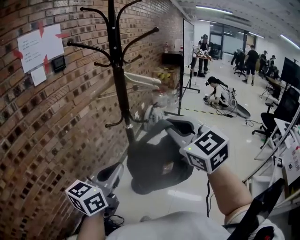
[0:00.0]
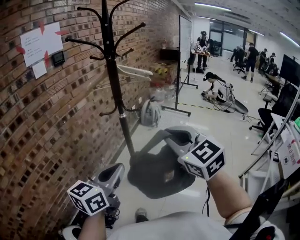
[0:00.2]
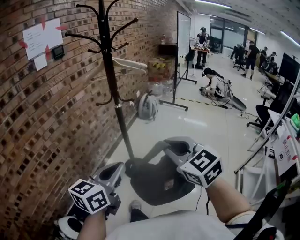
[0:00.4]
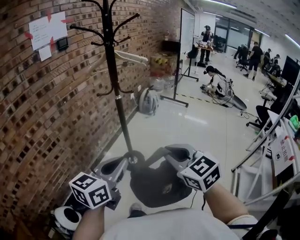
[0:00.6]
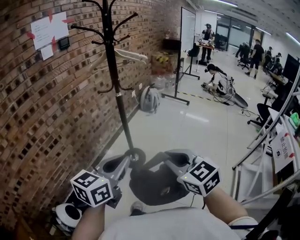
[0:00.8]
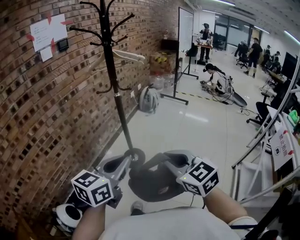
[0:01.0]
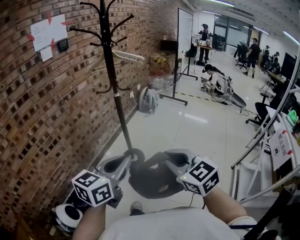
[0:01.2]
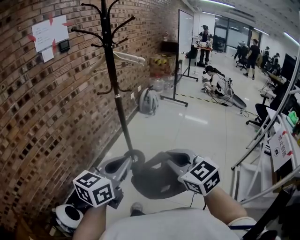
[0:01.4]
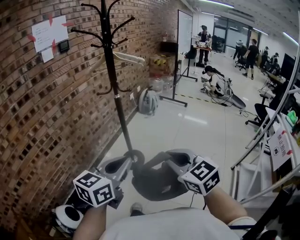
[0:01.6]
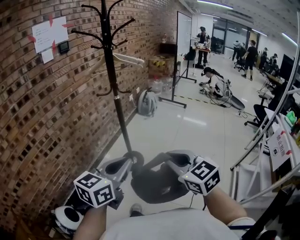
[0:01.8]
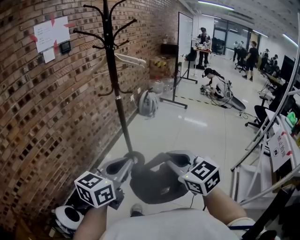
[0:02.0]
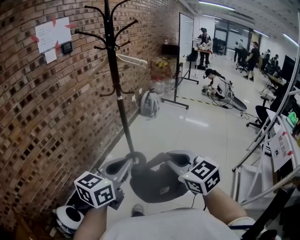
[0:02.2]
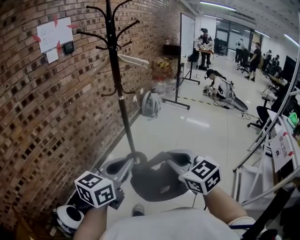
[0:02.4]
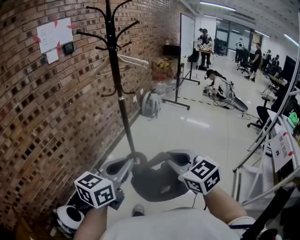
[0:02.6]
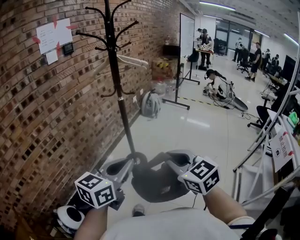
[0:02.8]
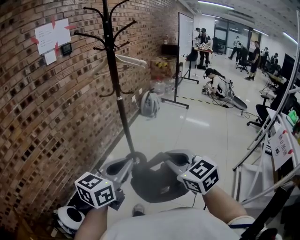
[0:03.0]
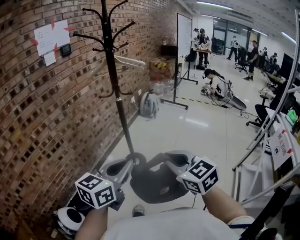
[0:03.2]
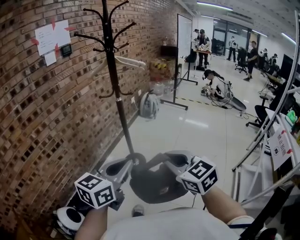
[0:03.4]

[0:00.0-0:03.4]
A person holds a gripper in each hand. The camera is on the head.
0:00.0 to 0:01.6: The left gripper goes roughly 25 cm backward and to the right. Meanwhile the right gripper is displaced backward and downward by roughly 30 cm.
0:01.6 to 0:03.4: There are only small adjustments of the grippers.

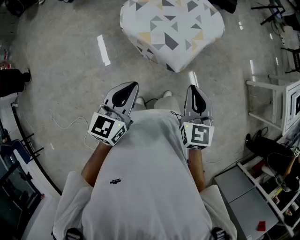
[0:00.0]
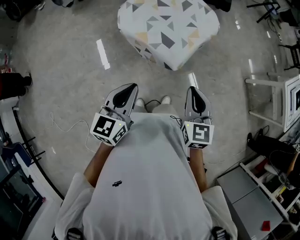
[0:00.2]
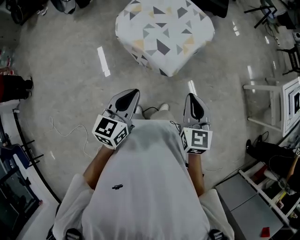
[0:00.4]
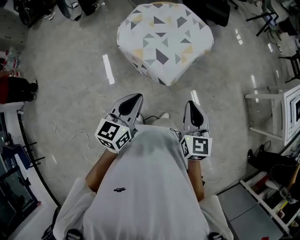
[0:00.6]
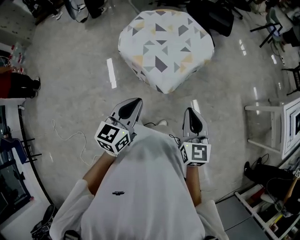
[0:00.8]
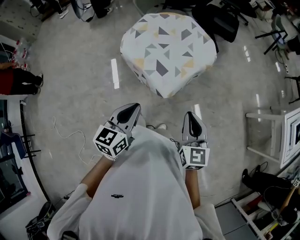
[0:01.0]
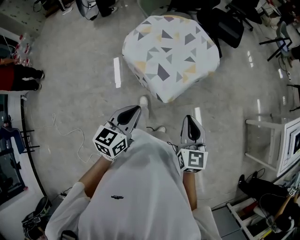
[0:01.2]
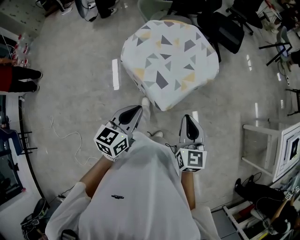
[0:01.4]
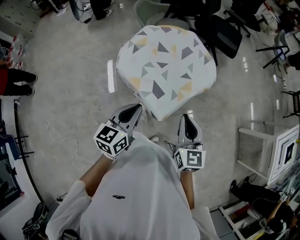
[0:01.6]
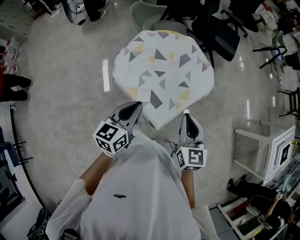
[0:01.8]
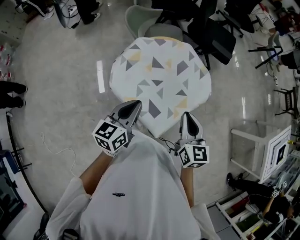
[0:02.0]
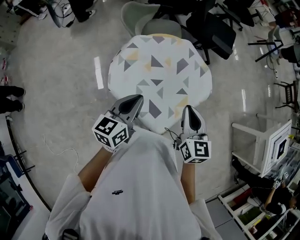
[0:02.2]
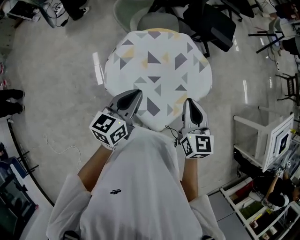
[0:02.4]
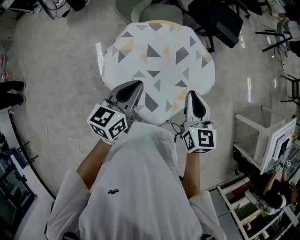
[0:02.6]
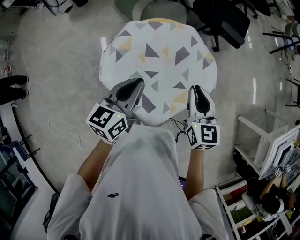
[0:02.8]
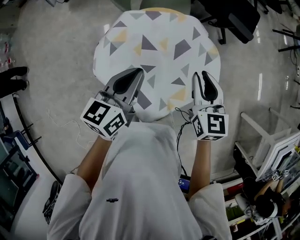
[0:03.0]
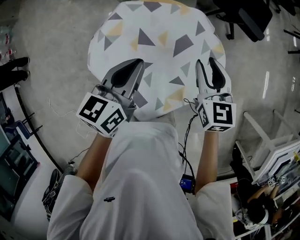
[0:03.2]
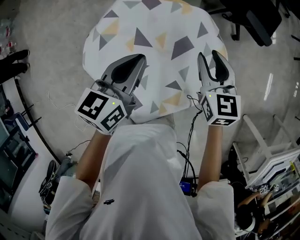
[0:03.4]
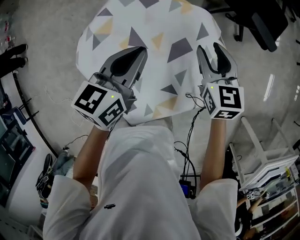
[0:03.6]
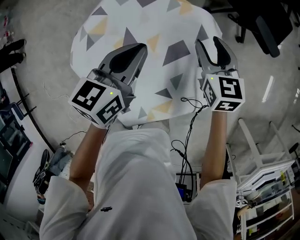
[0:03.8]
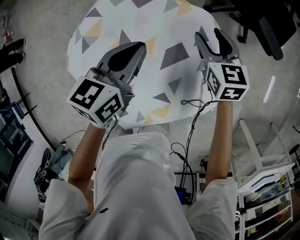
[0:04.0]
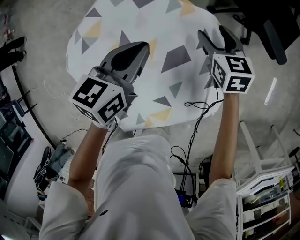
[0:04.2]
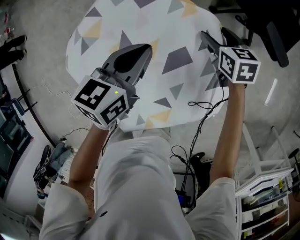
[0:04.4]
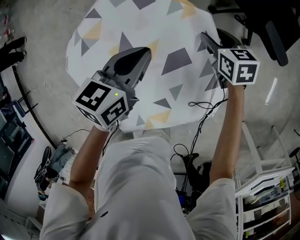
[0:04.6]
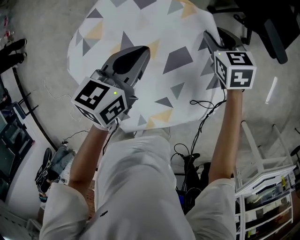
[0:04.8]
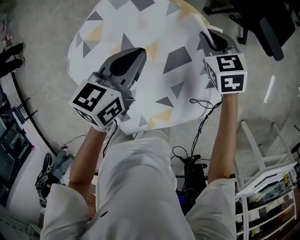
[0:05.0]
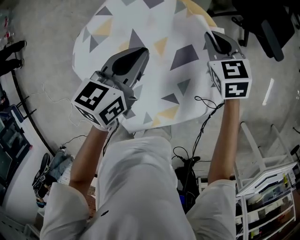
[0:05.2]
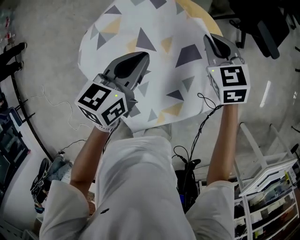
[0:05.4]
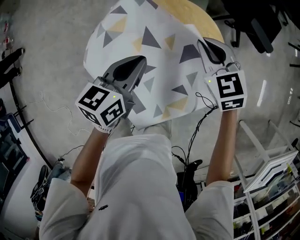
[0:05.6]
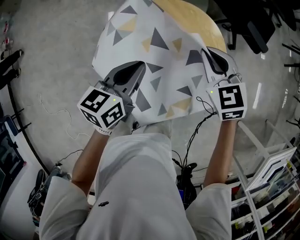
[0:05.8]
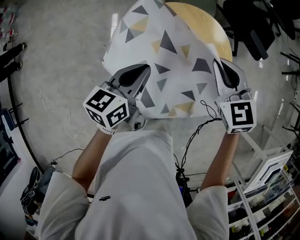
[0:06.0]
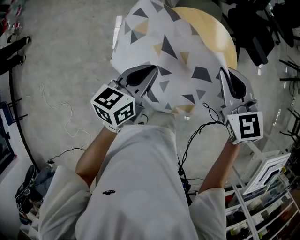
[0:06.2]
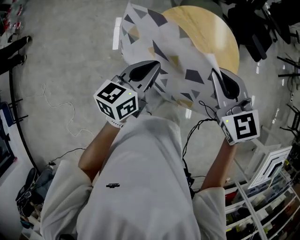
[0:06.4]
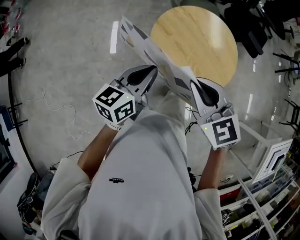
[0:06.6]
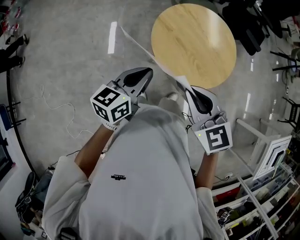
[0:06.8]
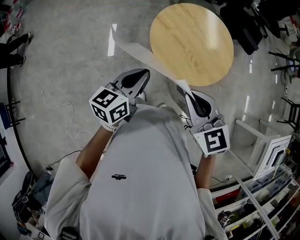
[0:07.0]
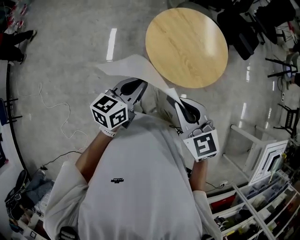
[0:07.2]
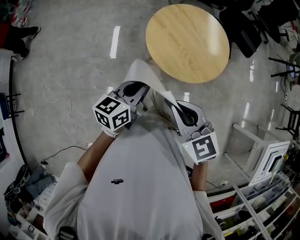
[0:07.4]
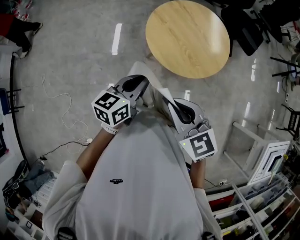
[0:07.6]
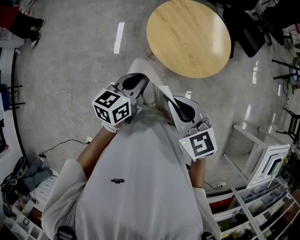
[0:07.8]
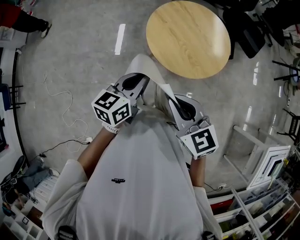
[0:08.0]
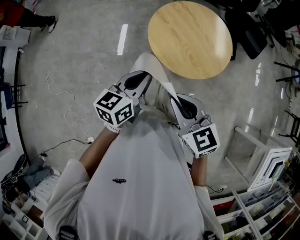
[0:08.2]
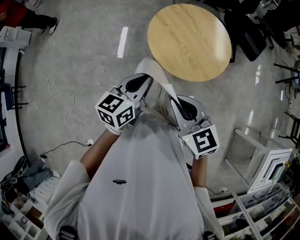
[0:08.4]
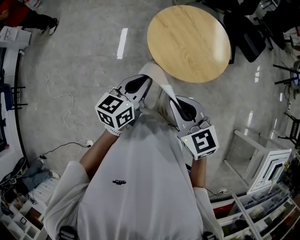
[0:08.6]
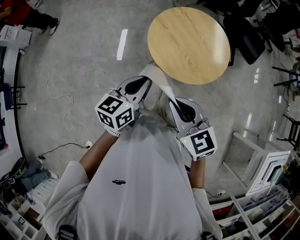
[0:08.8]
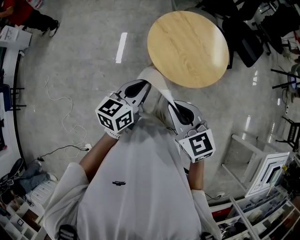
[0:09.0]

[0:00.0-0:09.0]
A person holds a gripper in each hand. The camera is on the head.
0:00.0 to 0:01.6: Both grippers move forward and to the right, about 15 cm.
0:01.6 to 0:03.0: Both grippers move forward, approximately 35 cm.
0:03.0 to 0:04.4: The left gripper moves downward, forward and to the right, some 25 cm. Meanwhile the right gripper shifts some 40 cm downward and forward, rotates some 40 degrees, and opens its fingers.
0:04.4 to 0:06.0: The left gripper is displaced backward, to the left and upward by some 30 cm. Meanwhile the right gripper travels upward, backward and to the left by roughly 40 cm, swivels approximately 40 degrees, and closes up.
0:06.0 to 0:07.6: The left gripper travels backward by roughly 30 cm, while the right gripper moves backward and to the left, roughly 50 cm.
0:07.6 to 0:09.0: The grippers move only a little.

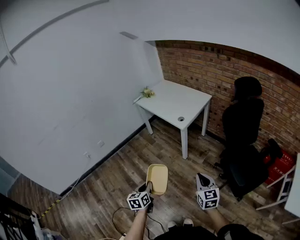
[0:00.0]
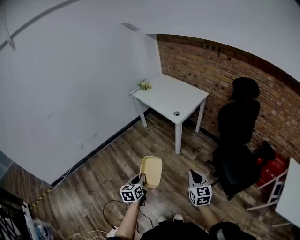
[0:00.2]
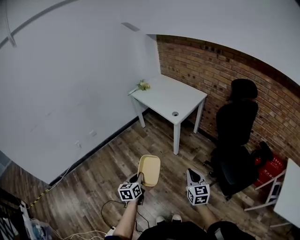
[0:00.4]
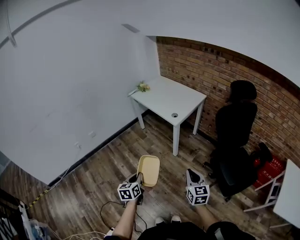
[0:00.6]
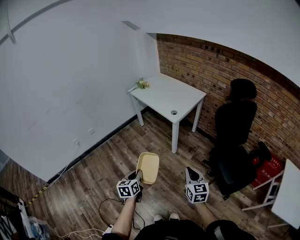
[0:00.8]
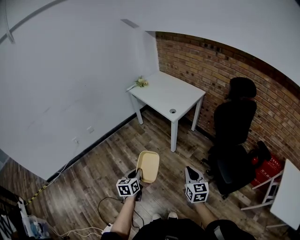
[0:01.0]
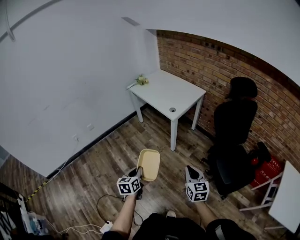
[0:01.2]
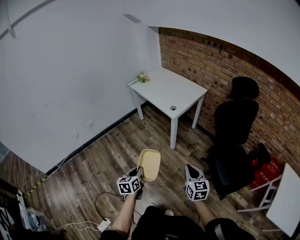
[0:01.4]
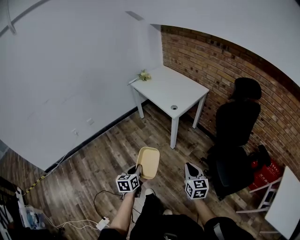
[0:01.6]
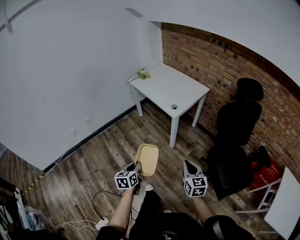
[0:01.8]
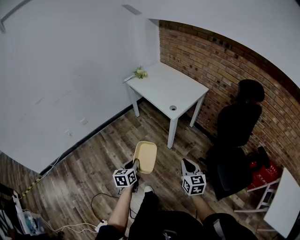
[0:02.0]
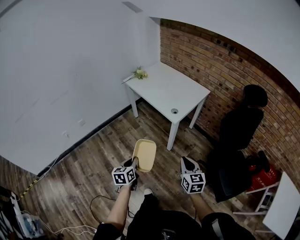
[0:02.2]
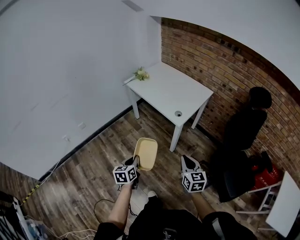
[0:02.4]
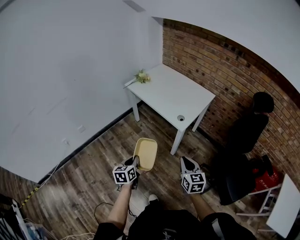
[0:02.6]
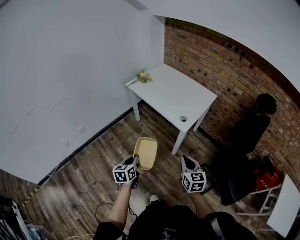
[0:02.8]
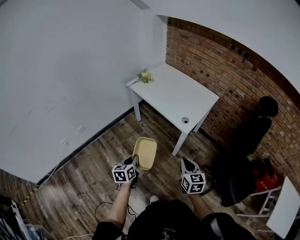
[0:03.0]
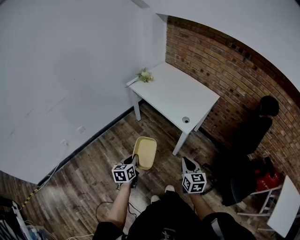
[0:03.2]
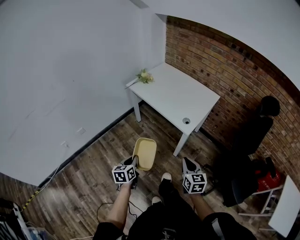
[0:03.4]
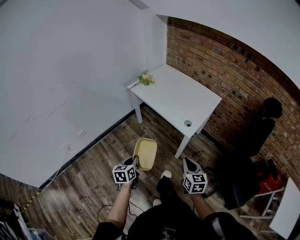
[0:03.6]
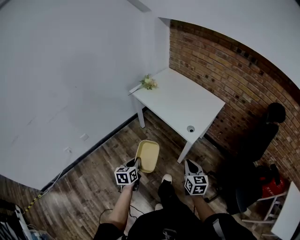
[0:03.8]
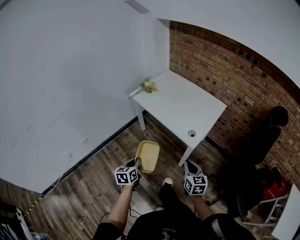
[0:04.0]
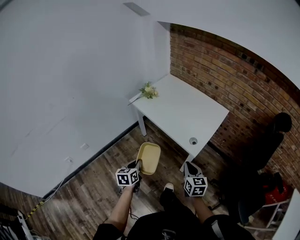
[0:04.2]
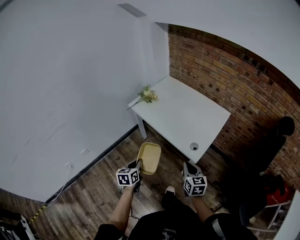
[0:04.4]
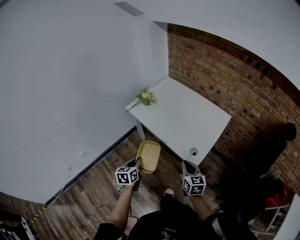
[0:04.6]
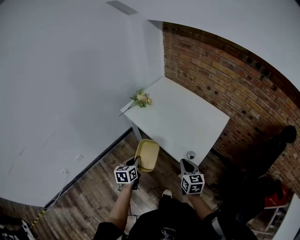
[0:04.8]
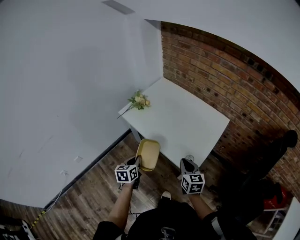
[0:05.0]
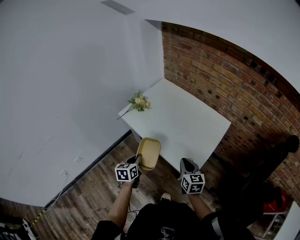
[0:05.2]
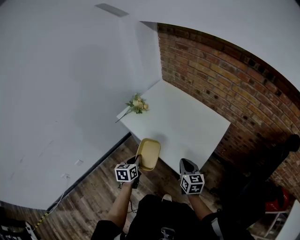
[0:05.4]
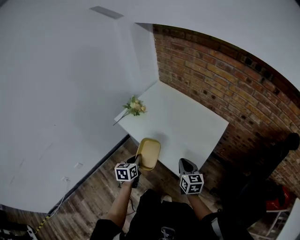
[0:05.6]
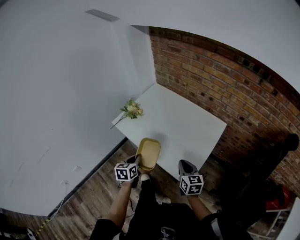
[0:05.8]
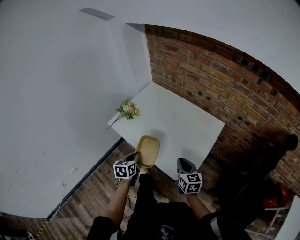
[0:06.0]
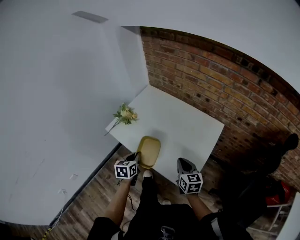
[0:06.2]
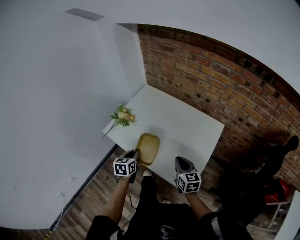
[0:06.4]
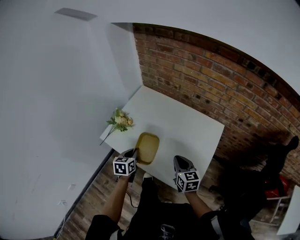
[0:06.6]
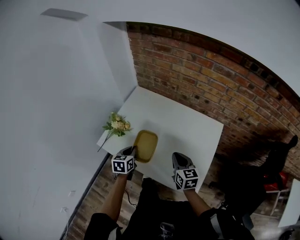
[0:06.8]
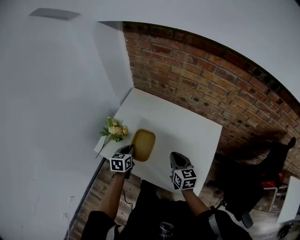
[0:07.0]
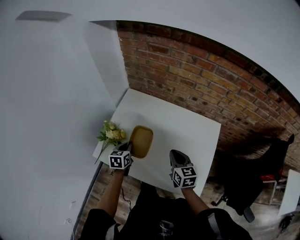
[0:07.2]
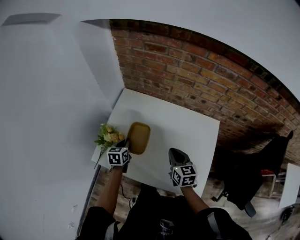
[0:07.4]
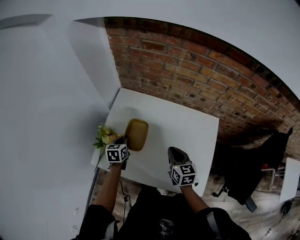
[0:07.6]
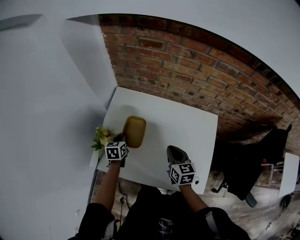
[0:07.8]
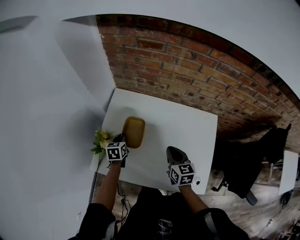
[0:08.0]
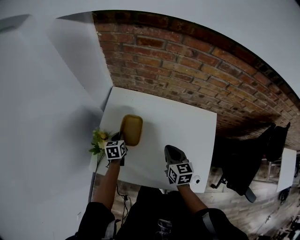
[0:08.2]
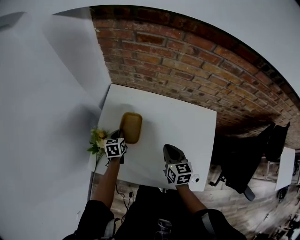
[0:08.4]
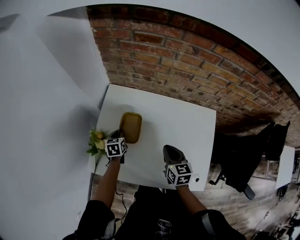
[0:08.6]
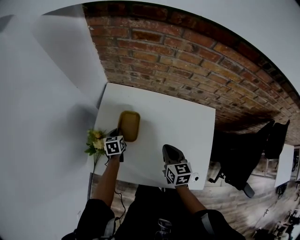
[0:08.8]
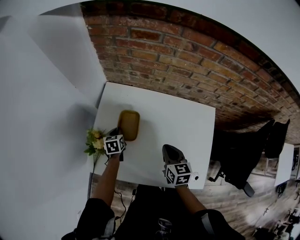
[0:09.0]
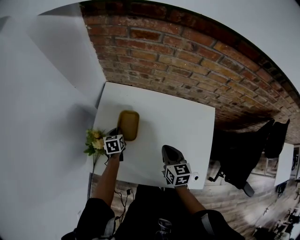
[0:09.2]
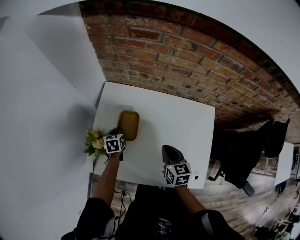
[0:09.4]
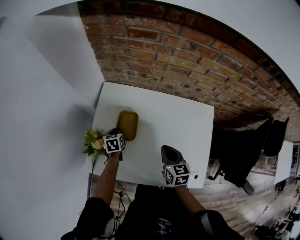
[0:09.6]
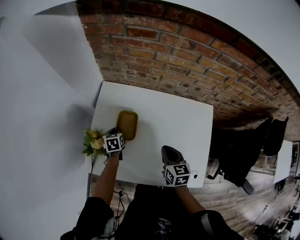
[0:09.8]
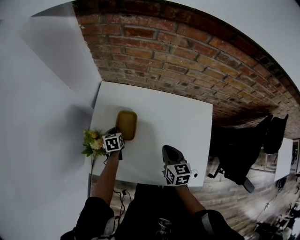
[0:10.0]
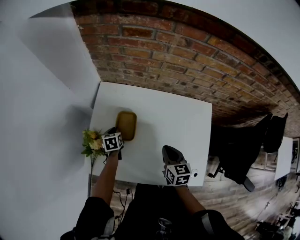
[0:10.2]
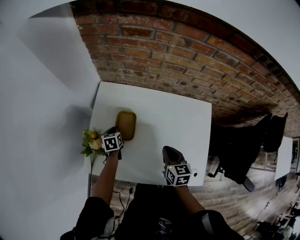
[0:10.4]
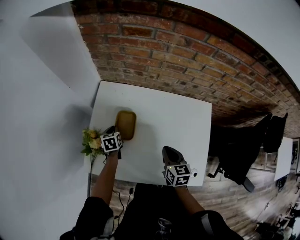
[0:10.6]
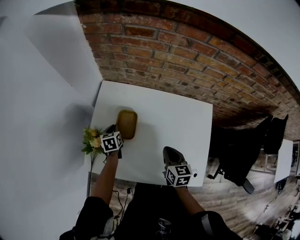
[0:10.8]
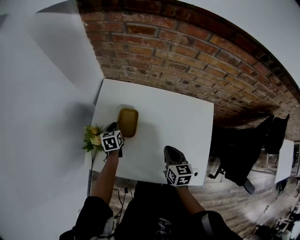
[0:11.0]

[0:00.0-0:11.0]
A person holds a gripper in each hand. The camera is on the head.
0:00.0 to 0:01.6: The grippers move only a little.
0:01.6 to 0:03.2: Both grippers travel together forward and to the left, some 30 cm.
0:03.2 to 0:04.8: Both grippers move forward, some 30 cm.
0:04.8 to 0:06.2: The right gripper goes some 15 cm forward, while the left gripper shifts roughly 20 cm forward and to the right.
0:06.2 to 0:07.8: The left gripper heads forward, covering roughly 35 cm. Meanwhile the right gripper heads forward and to the left, covering roughly 25 cm, and changes its angle by approximately 20 degrees.
0:07.8 to 0:09.4: The left gripper is displaced downward by approximately 5 cm.
0:09.4 to 0:11.0: There are only small adjustments of the grippers.
